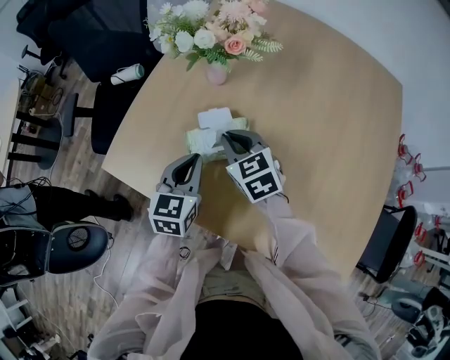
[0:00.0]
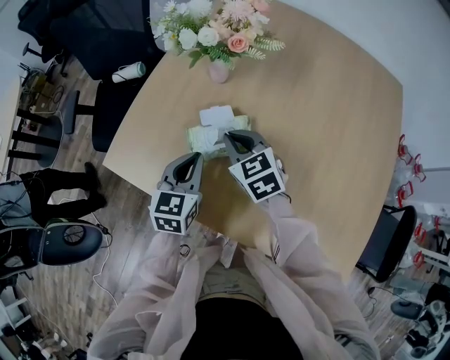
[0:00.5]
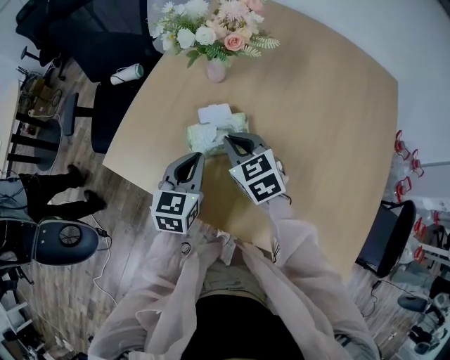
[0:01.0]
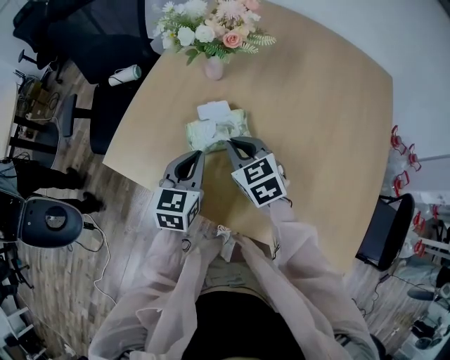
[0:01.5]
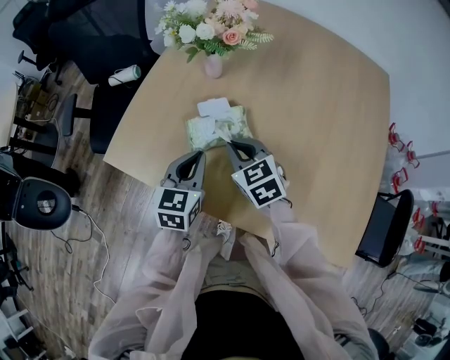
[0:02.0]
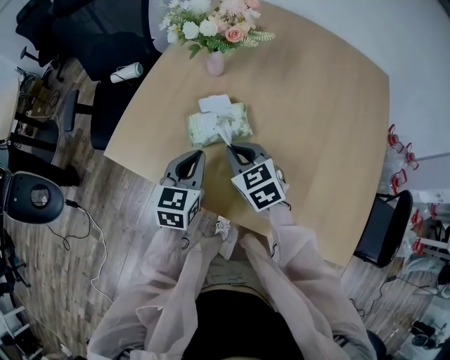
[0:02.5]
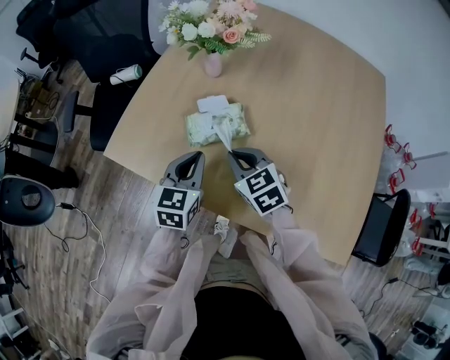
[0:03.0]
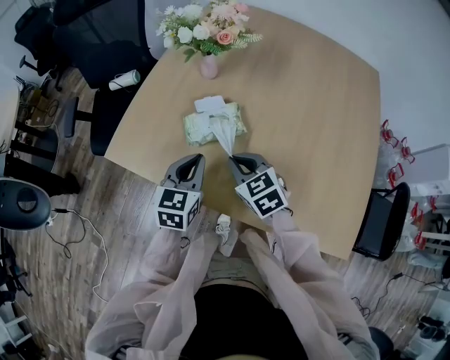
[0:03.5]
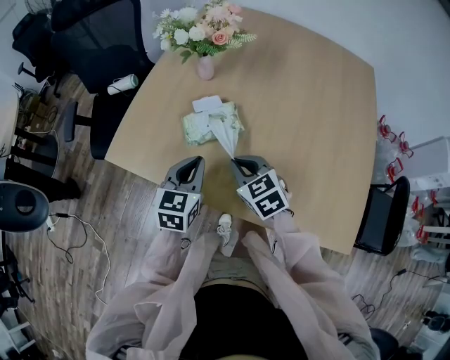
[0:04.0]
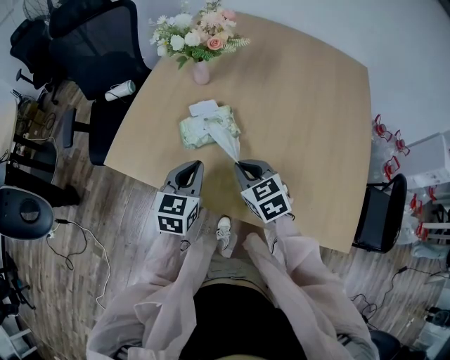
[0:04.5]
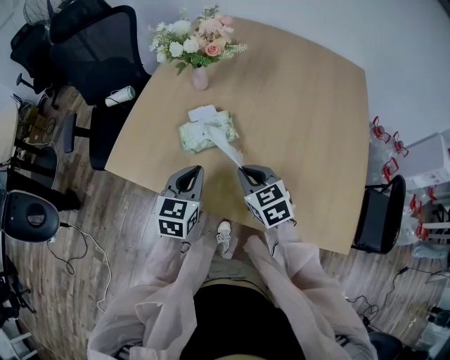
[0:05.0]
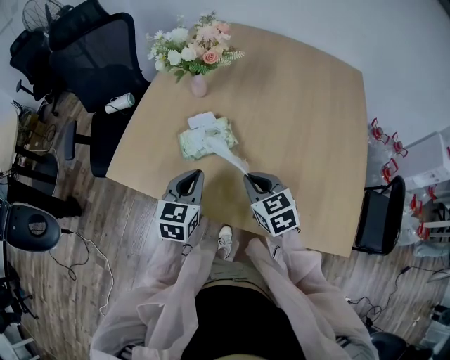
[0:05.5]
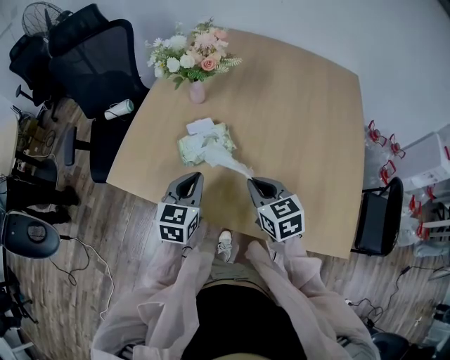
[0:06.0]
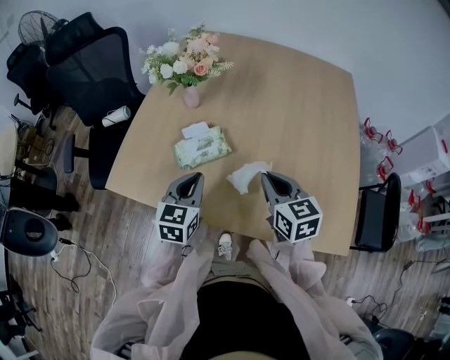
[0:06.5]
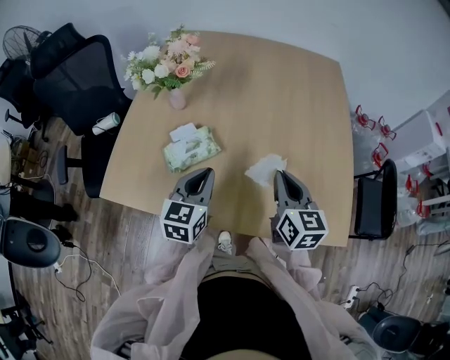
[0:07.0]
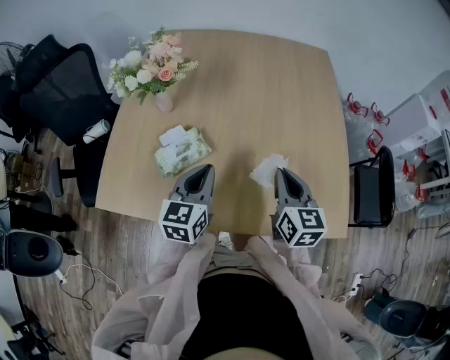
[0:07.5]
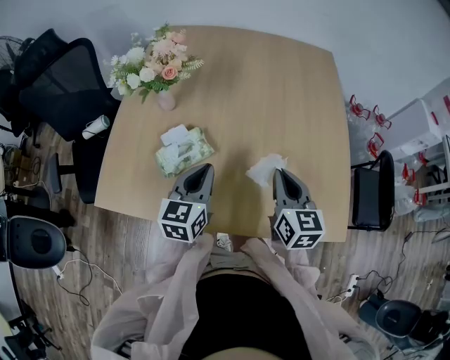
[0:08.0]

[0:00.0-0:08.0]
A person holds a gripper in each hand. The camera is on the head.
0:00.0 to 0:02.0: The right gripper travels backward by some 5 cm.
0:02.0 to 0:04.0: The right gripper shifts roughly 10 cm backward.
0:04.0 to 0:06.0: The right gripper travels to the right by roughly 5 cm.
0:06.0 to 0:08.0: The left gripper shifts about 10 cm to the right, while the right gripper heads to the right and upward, covering roughly 15 cm, and swivels some 30 degrees.

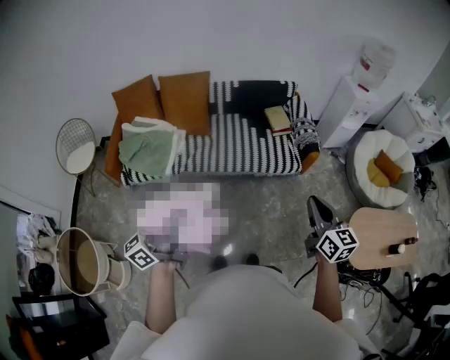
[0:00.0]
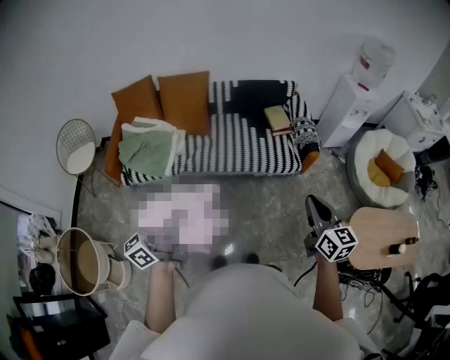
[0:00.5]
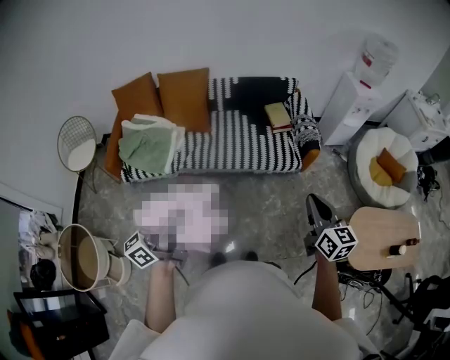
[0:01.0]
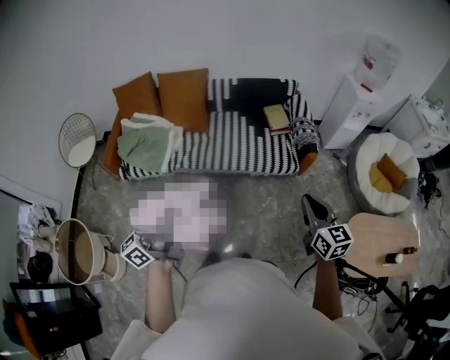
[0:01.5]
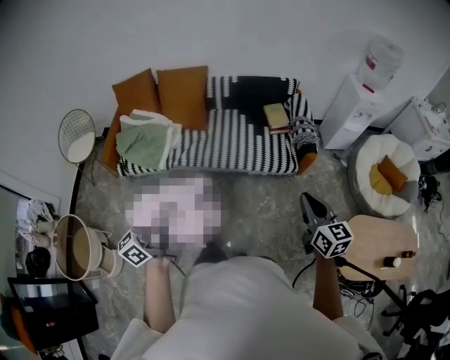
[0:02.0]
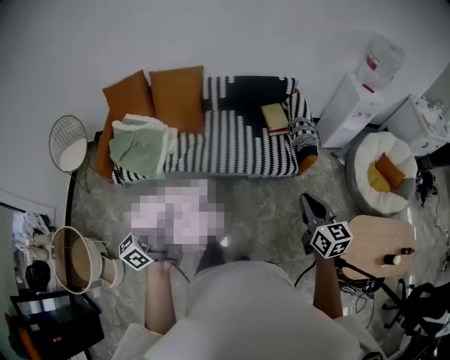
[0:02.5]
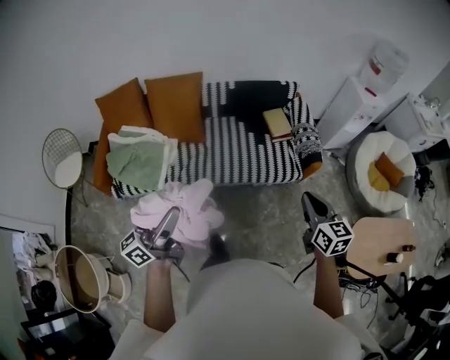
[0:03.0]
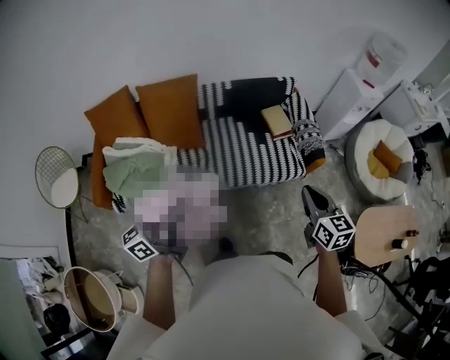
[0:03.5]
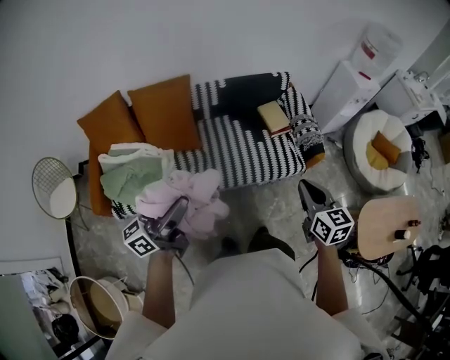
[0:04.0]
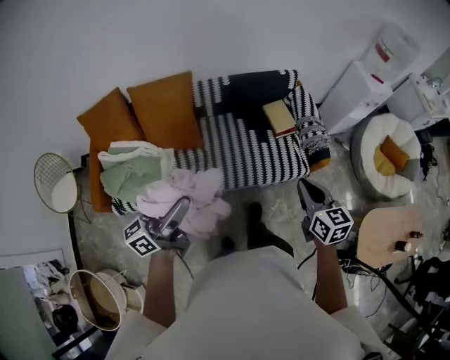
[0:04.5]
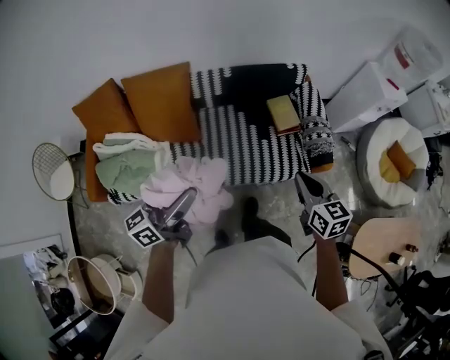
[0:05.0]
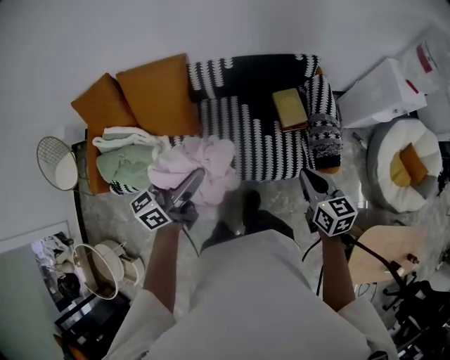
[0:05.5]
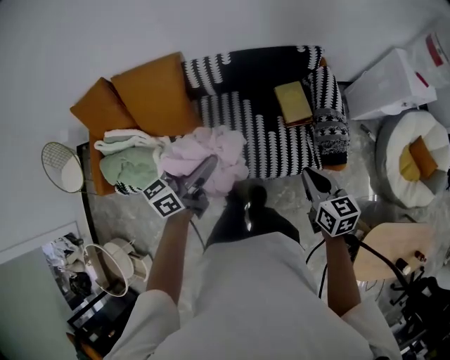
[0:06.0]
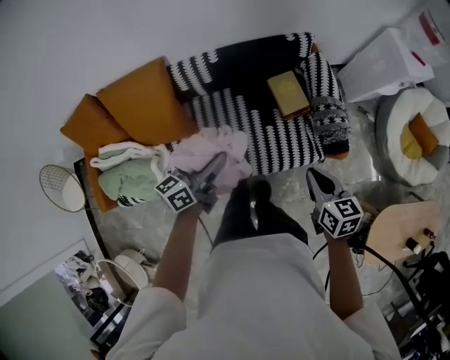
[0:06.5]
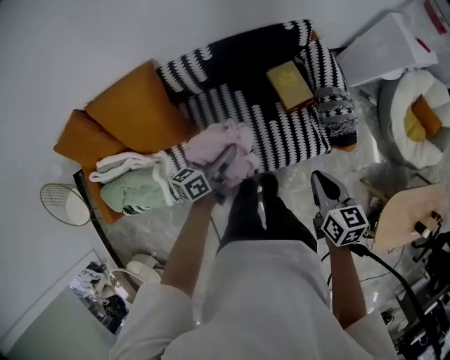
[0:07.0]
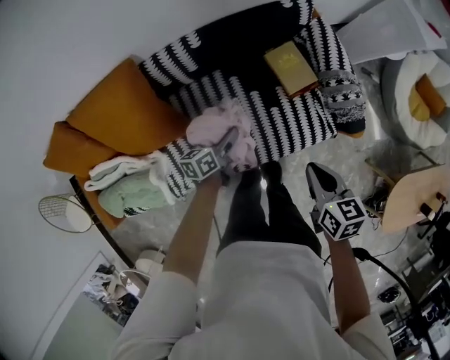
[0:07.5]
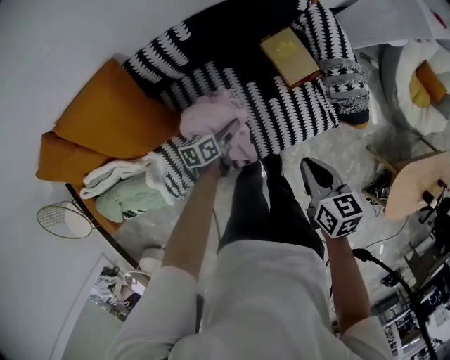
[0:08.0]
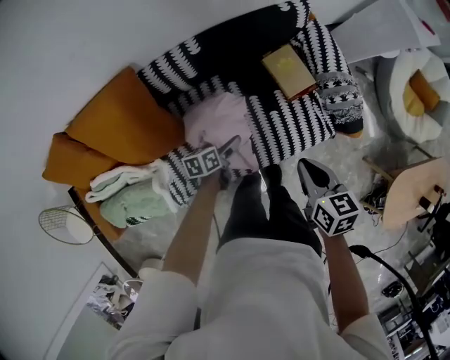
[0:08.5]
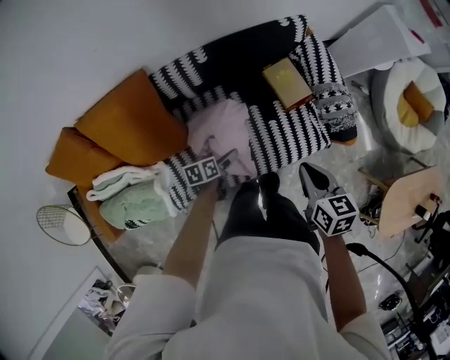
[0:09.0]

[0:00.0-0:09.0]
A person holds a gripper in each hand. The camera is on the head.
0:00.0 to 0:02.0: The left gripper travels to the right by approximately 10 cm. Meanwhile the right gripper goes approximately 10 cm to the right and forward.
0:02.0 to 0:04.5: The pair of grippers is taken forward and to the left, about 40 cm. The left gripper turns by approximately 20 degrees.
0:04.5 to 0:07.0: The left gripper moves forward and downward, approximately 60 cm, and tilts its fingers roughly 30 degrees downward. The right gripper is displaced forward and downward by approximately 35 cm, and turns by approximately 20 degrees.
0:07.0 to 0:09.0: The right gripper travels to the left by some 10 cm, and goes downward and returns, about 10 cm each way, while the left gripper travels downward and to the left by some 20 cm, points its fingers some 30 degrees further downward, and opens.

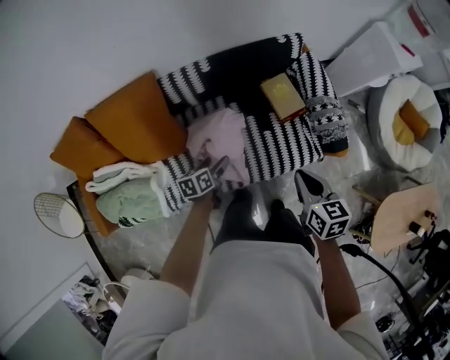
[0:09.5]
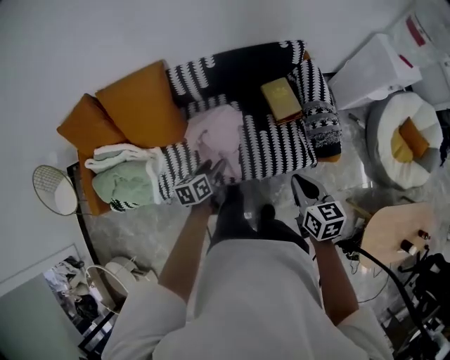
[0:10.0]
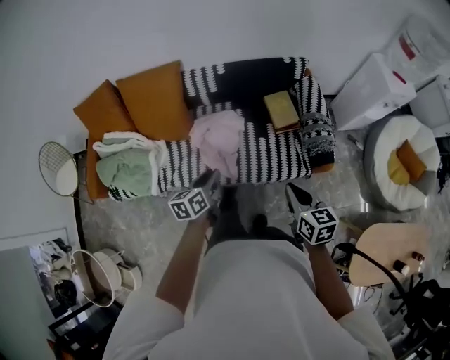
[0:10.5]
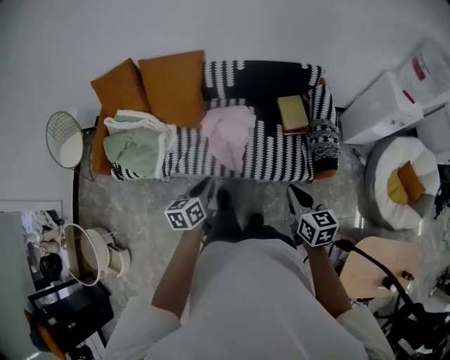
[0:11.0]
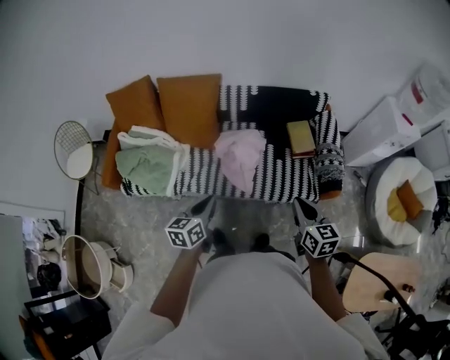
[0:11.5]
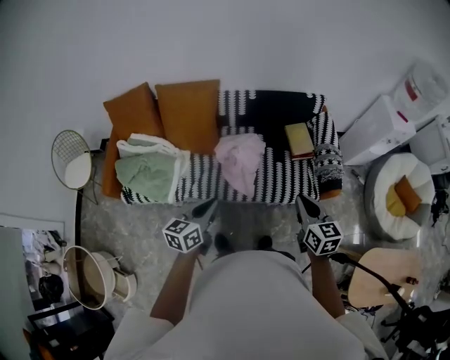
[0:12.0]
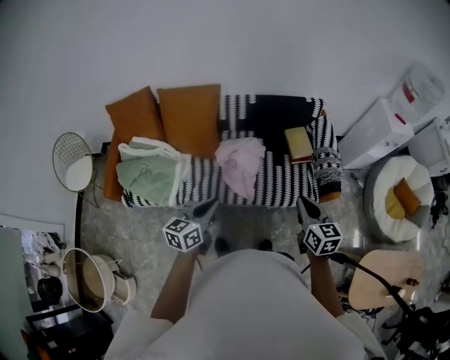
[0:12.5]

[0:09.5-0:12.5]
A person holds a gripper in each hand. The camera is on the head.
0:09.5 to 0:11.0: The left gripper is displaced backward and upward by roughly 40 cm, turns by approximately 30 degrees, and closes up. The right gripper moves backward, some 25 cm, and swivels some 20 degrees.
0:11.0 to 0:12.5: The right gripper travels to the left and upward by roughly 10 cm. Meanwhile the left gripper goes approximately 15 cm upward and to the left, and changes its angle by about 20 degrees.

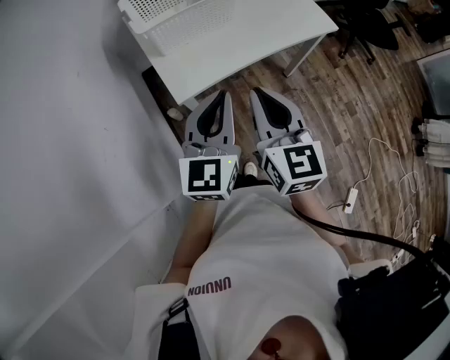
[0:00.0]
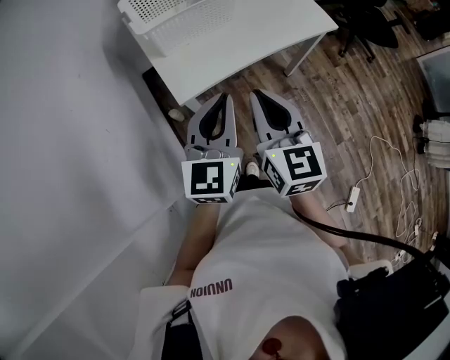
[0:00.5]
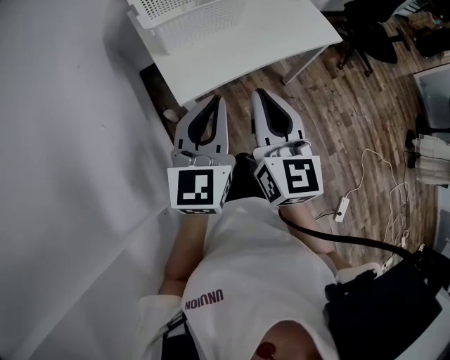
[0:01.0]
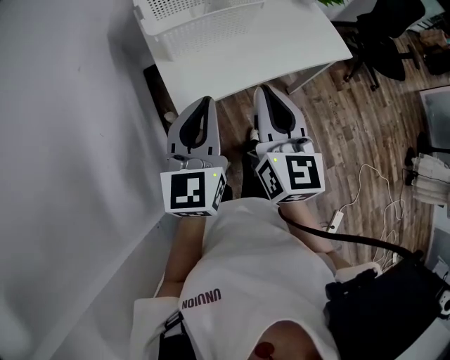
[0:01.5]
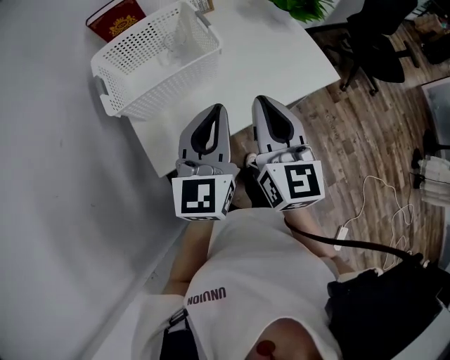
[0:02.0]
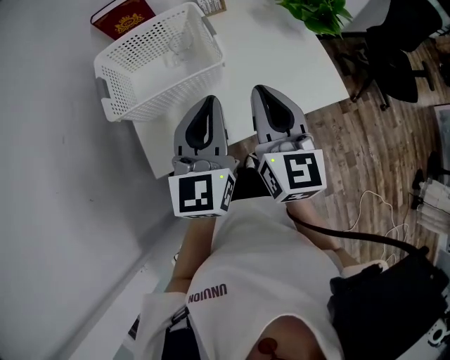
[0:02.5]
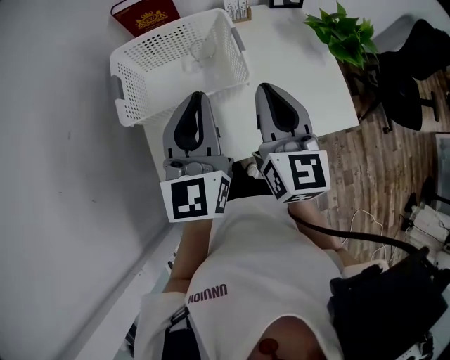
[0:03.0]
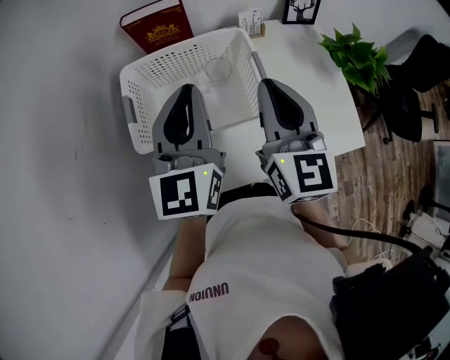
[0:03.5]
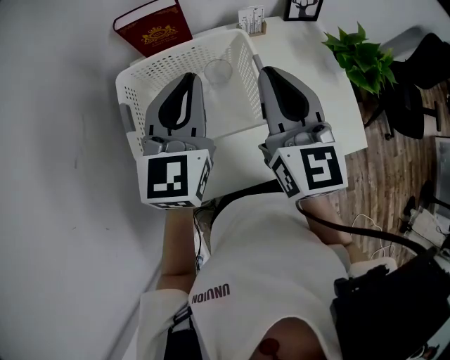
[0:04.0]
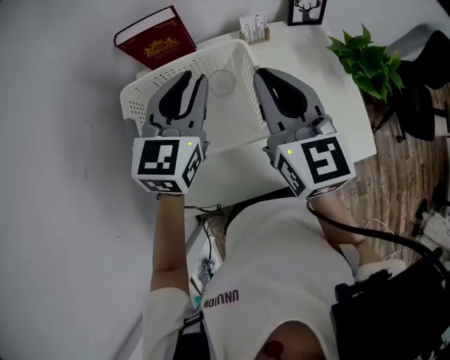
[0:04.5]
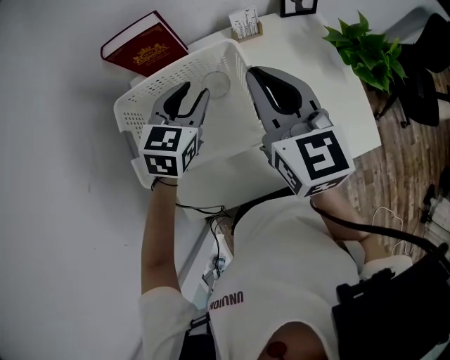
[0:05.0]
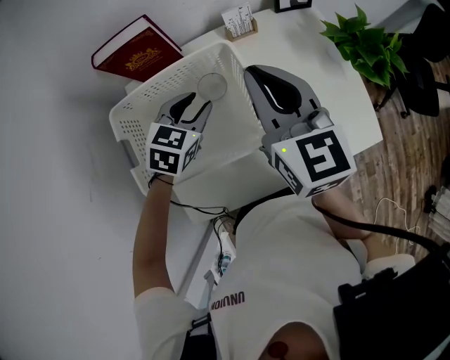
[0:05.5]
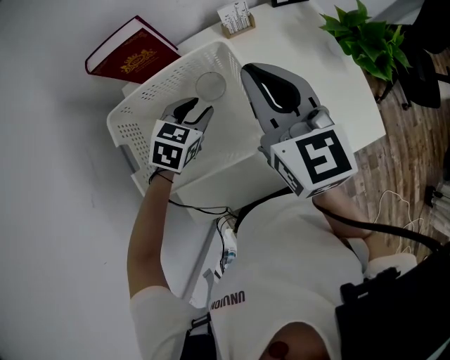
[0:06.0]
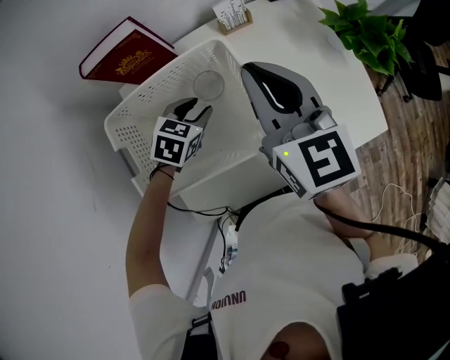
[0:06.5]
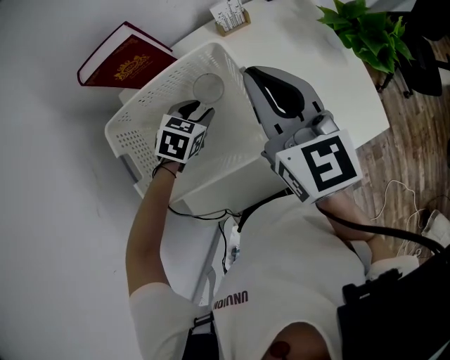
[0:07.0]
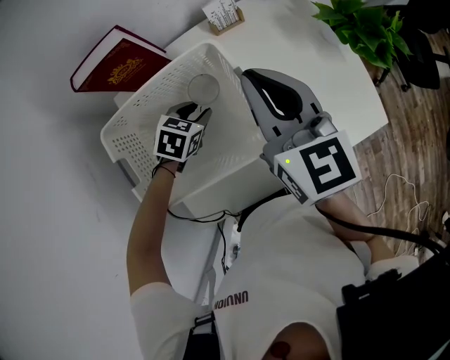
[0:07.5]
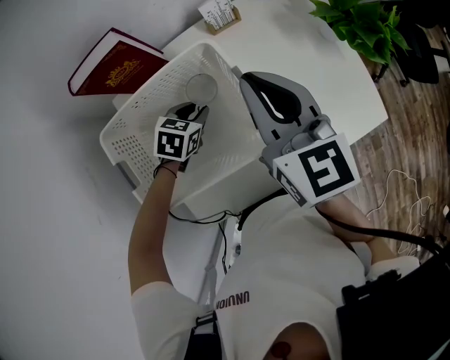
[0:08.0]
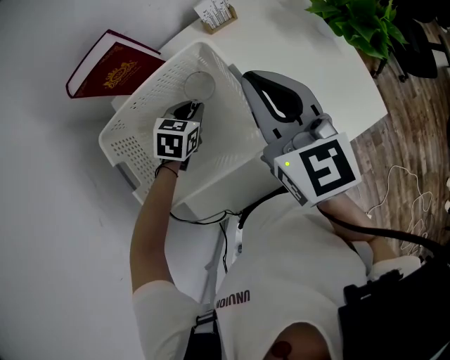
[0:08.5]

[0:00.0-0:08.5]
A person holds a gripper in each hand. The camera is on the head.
0:00.0 to 0:02.0: The right gripper travels forward and to the right by approximately 20 cm. The left gripper heads forward, covering roughly 20 cm.
0:02.0 to 0:04.0: Both grippers travel together forward, roughly 25 cm.
0:04.0 to 0:06.5: The right gripper travels forward by approximately 5 cm, while the left gripper shifts some 25 cm downward, tilts its fingers some 50 degrees downward, and opens its fingers.
0:06.5 to 0:08.5: The left gripper closes.
